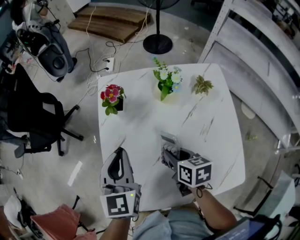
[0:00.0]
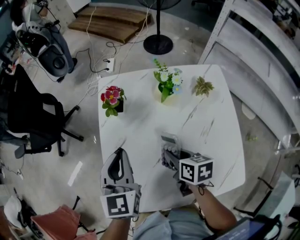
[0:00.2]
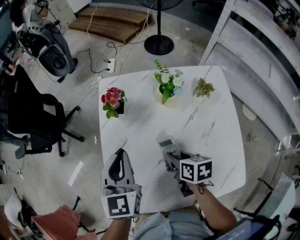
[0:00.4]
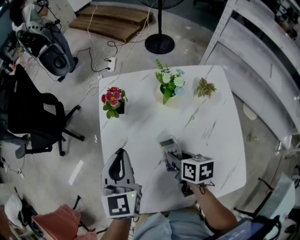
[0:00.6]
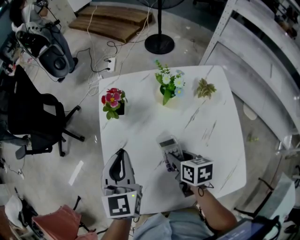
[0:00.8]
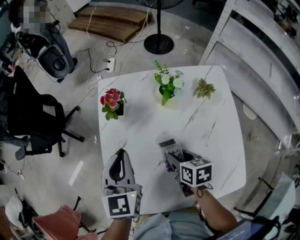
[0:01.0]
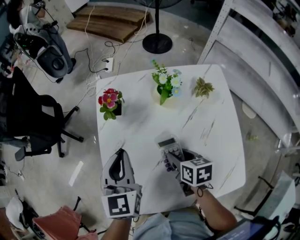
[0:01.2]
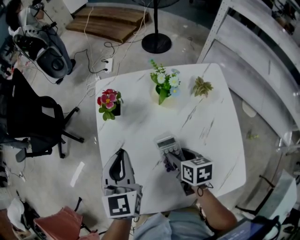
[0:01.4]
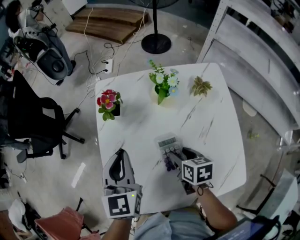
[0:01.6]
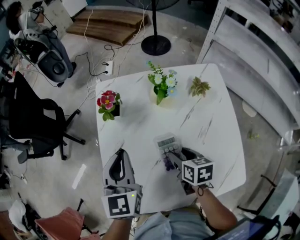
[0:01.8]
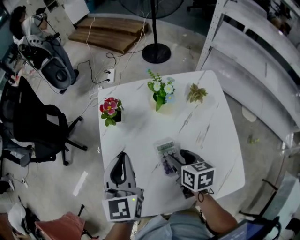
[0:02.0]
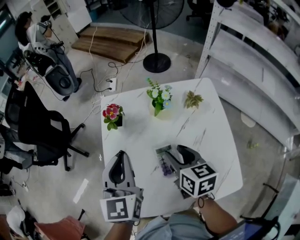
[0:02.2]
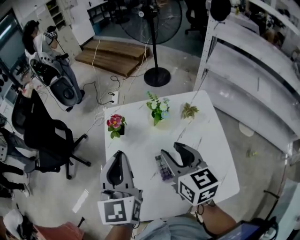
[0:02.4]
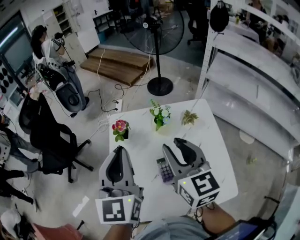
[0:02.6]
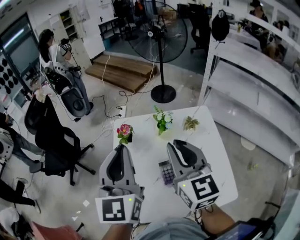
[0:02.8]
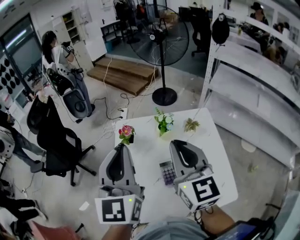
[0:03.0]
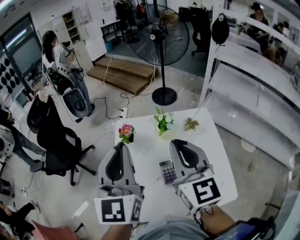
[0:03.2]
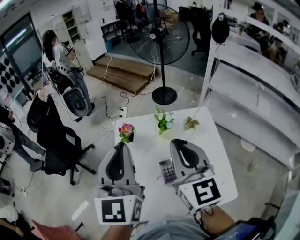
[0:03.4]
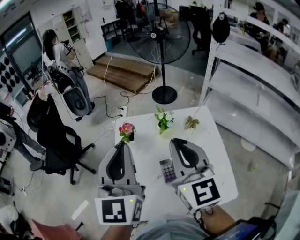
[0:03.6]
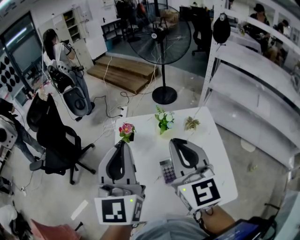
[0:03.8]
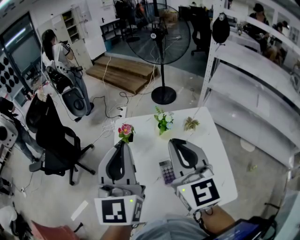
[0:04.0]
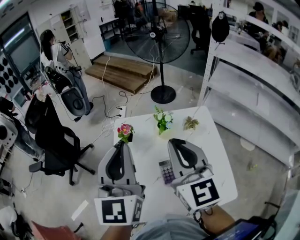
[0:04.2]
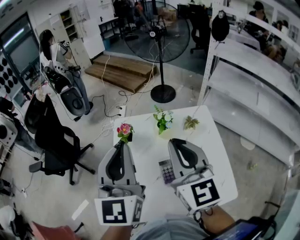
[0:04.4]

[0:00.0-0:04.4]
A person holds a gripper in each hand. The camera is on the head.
0:00.0 to 0:01.4: The right gripper opens.
0:01.4 to 0:03.0: The two grippers go approximately 30 cm upward. The left gripper swivels about 30 degrees. The right gripper angles its fingers upward, by roughly 50 degrees, and closes its fingers.
0:03.0 to 0:04.4: There are only small adjustments of the grippers.

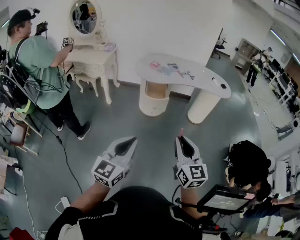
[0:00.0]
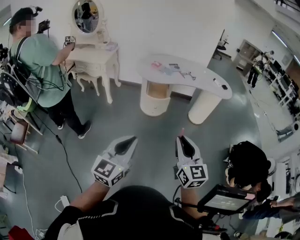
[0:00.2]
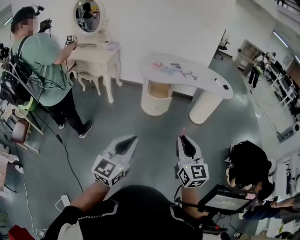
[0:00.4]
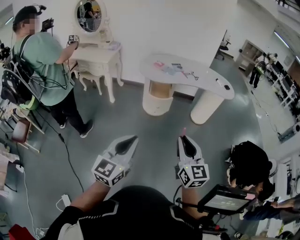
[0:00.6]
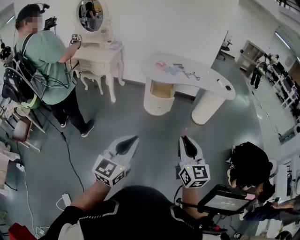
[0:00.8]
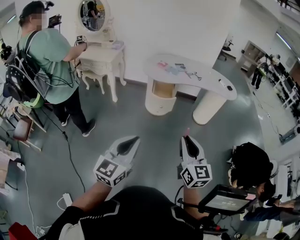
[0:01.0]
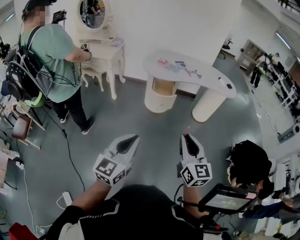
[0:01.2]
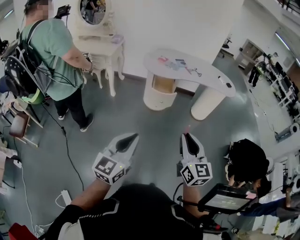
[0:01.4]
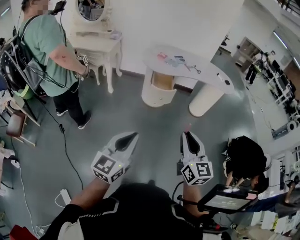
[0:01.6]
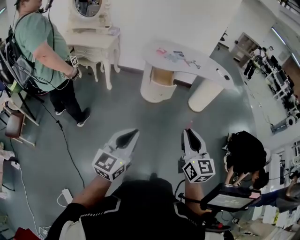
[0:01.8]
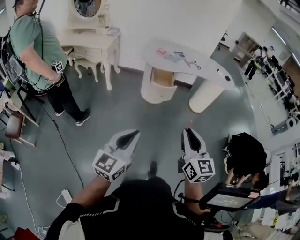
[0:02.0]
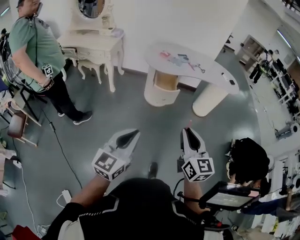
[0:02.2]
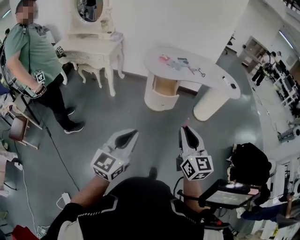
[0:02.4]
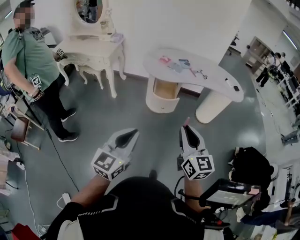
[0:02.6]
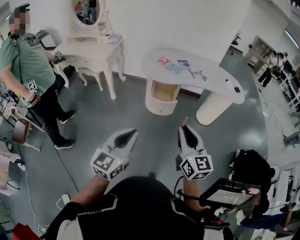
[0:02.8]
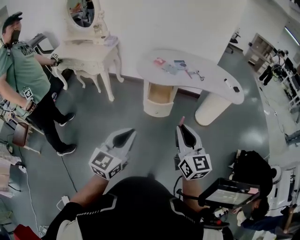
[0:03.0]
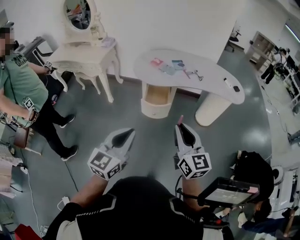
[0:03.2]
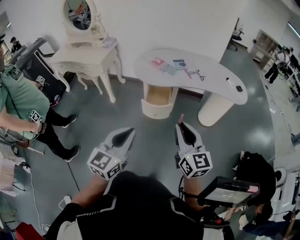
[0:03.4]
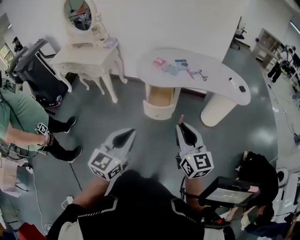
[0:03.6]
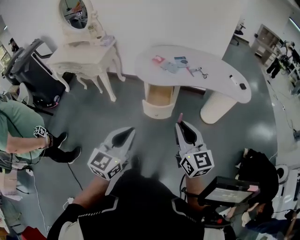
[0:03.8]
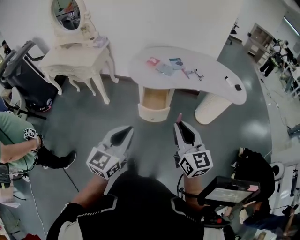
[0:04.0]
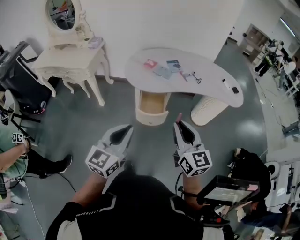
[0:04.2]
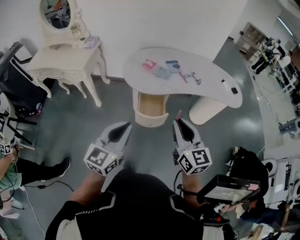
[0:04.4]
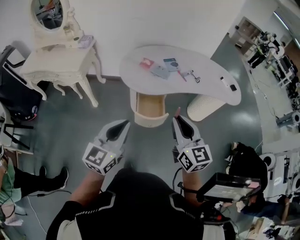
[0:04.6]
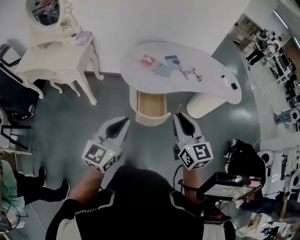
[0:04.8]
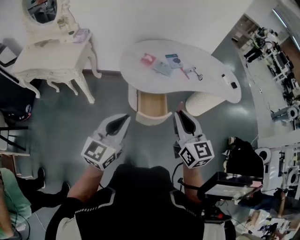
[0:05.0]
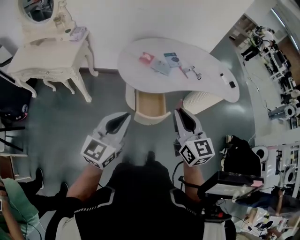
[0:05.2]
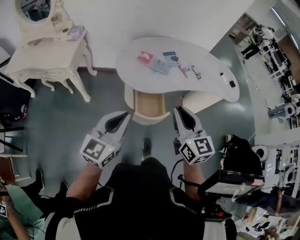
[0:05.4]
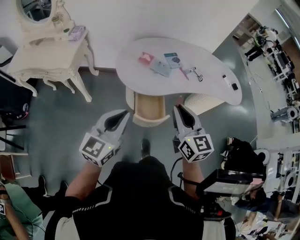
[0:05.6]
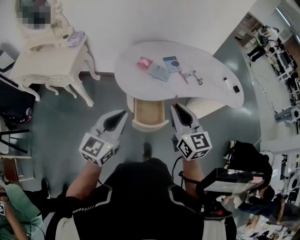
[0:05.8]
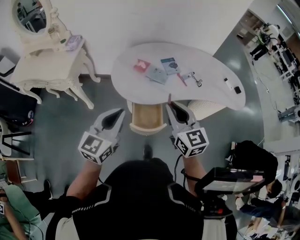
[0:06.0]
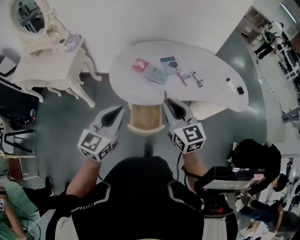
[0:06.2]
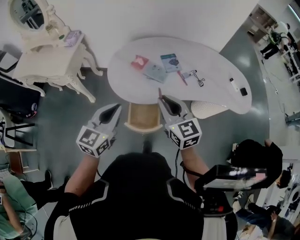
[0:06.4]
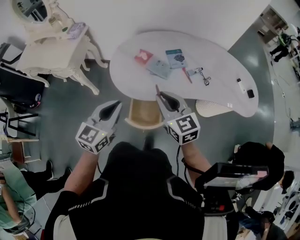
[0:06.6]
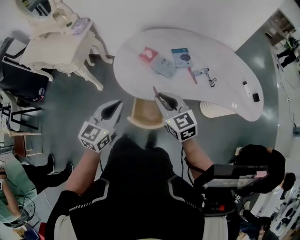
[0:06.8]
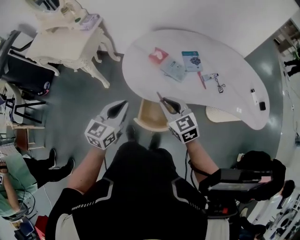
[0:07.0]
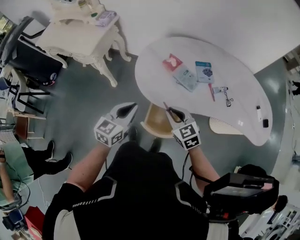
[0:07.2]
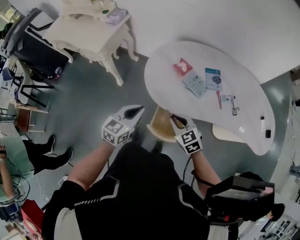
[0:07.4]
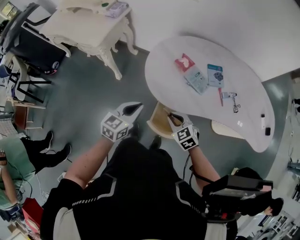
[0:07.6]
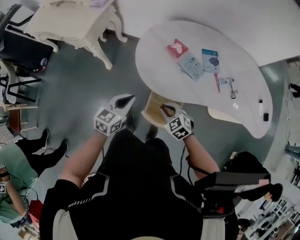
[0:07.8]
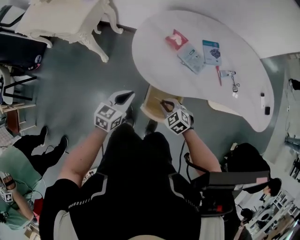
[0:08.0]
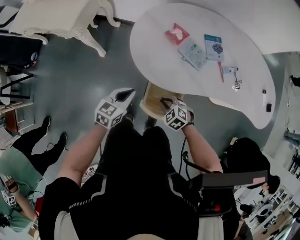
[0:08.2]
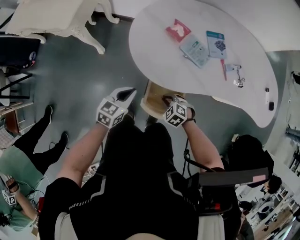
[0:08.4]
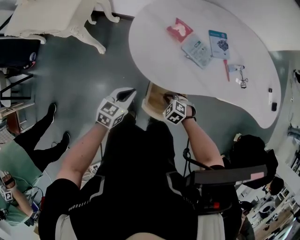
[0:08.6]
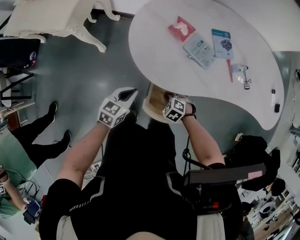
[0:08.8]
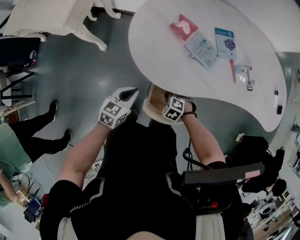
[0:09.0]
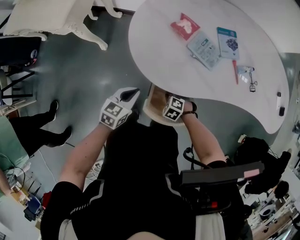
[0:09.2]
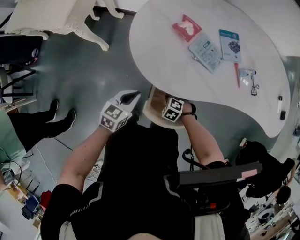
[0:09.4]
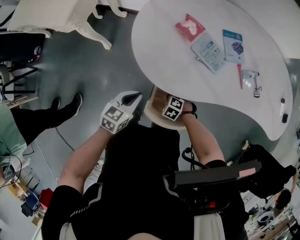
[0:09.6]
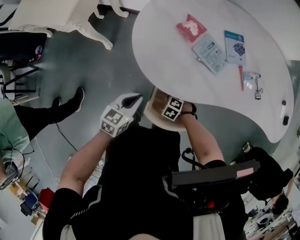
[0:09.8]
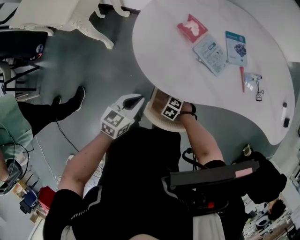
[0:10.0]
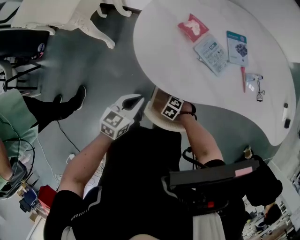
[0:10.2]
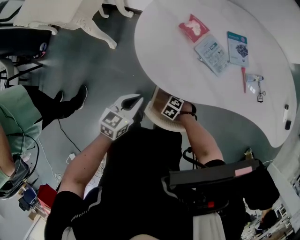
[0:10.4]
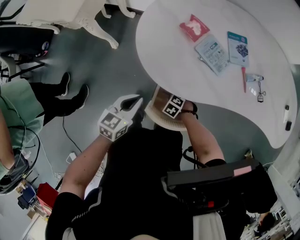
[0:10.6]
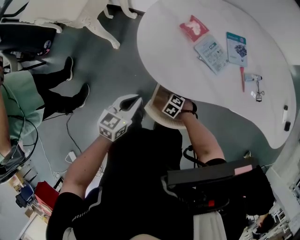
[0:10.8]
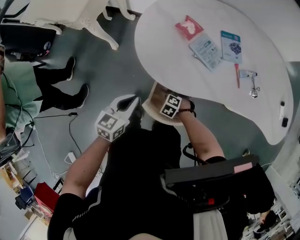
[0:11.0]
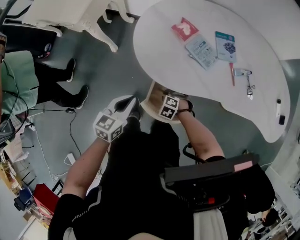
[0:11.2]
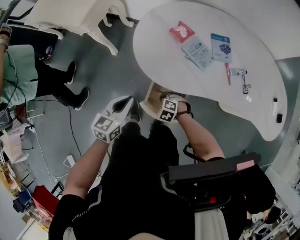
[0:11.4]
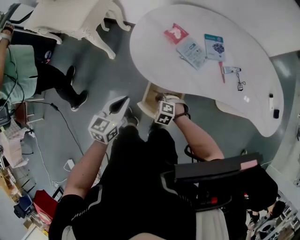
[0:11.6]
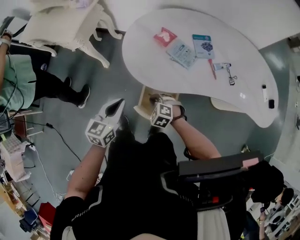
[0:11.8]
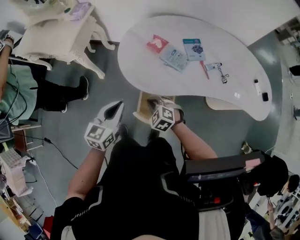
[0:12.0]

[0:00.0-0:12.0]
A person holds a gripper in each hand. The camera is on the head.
0:00.0 to 0:01.6: Both grippers travel together to the left, roughly 5 cm.
0:01.6 to 0:03.0: The right gripper goes approximately 20 cm forward. The left gripper travels forward and to the right by some 20 cm.
0:03.0 to 0:04.4: Both grippers travel together forward, about 20 cm.
0:04.4 to 0:06.0: Both grippers travel together forward, roughly 20 cm.
0:06.0 to 0:07.6: The right gripper shifts roughly 25 cm downward, and points its fingers roughly 30 degrees further downward; the left gripper moves downward and forward, about 20 cm, and rotates approximately 20 degrees.
0:07.6 to 0:09.0: Both grippers move downward, approximately 20 cm. The right gripper tips its fingers downward by approximately 30 degrees.
0:09.0 to 0:10.4: The right gripper is displaced downward by roughly 5 cm.
0:10.4 to 0:12.0: The right gripper is displaced upward by some 25 cm, and tips its fingers upward by roughly 30 degrees. Meanwhile the left gripper heads upward, covering approximately 15 cm.

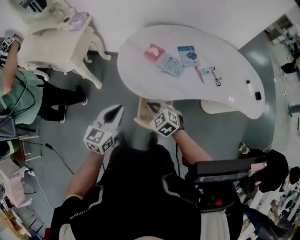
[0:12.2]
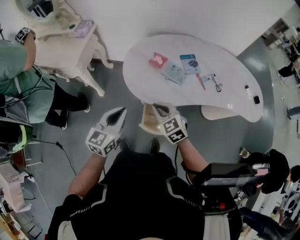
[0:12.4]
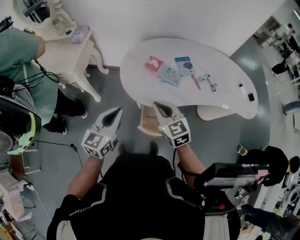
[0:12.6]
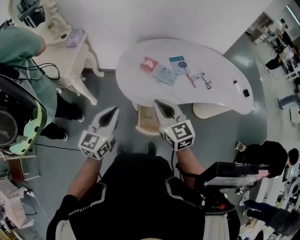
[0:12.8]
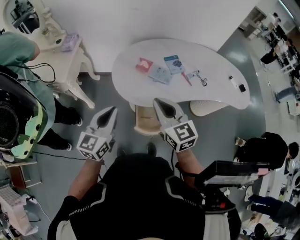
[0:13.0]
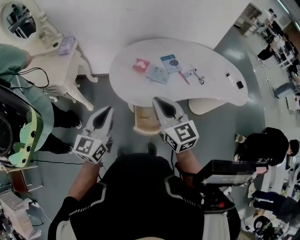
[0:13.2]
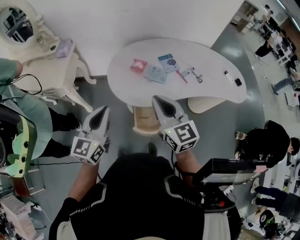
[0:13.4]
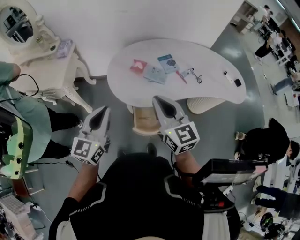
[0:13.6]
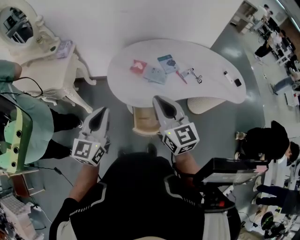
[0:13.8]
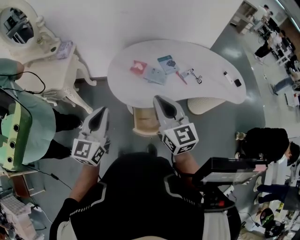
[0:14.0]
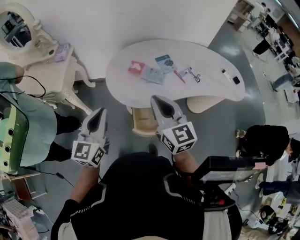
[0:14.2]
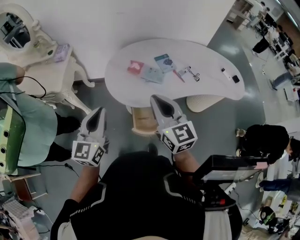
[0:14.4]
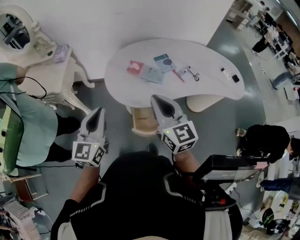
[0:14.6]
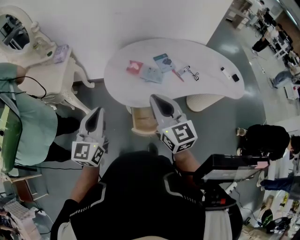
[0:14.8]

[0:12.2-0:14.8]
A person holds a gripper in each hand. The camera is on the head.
0:12.2 to 0:13.4: The right gripper is displaced upward by about 25 cm, and angles its fingers upward, by about 40 degrees. The left gripper goes roughly 15 cm upward.
0:13.4 to 0:14.8: The grippers stay close to where they were, moving slightly.

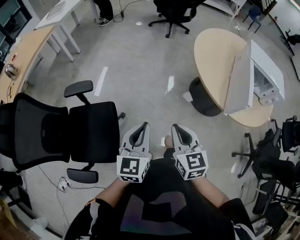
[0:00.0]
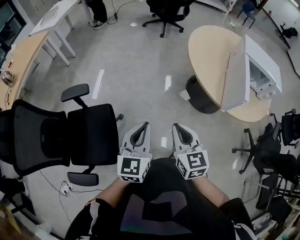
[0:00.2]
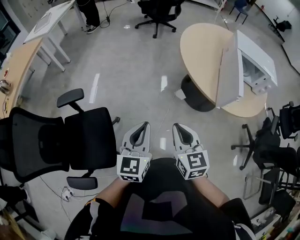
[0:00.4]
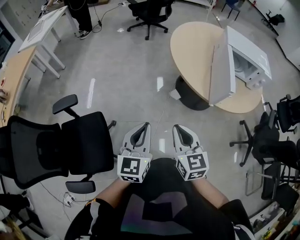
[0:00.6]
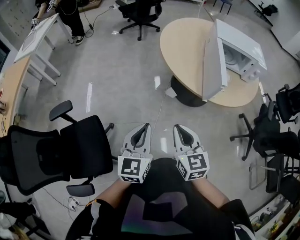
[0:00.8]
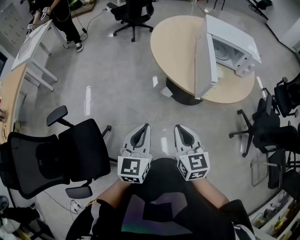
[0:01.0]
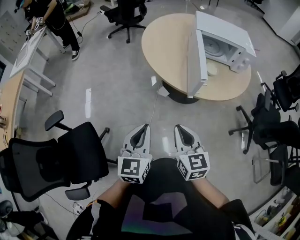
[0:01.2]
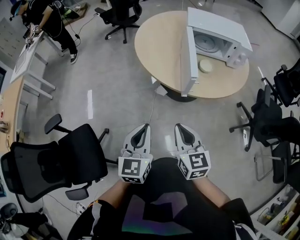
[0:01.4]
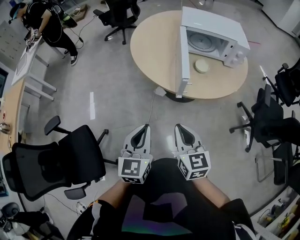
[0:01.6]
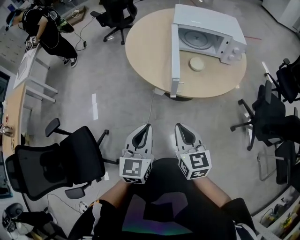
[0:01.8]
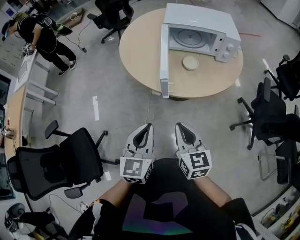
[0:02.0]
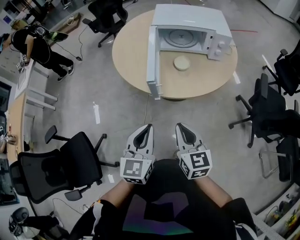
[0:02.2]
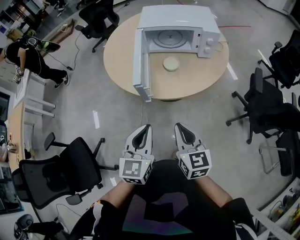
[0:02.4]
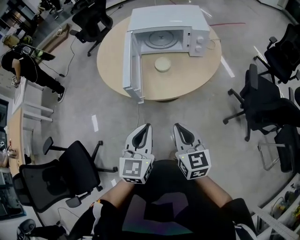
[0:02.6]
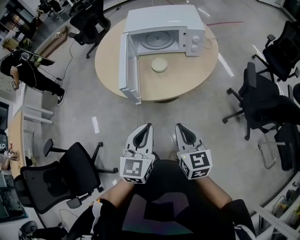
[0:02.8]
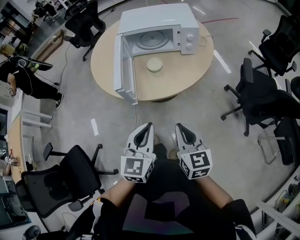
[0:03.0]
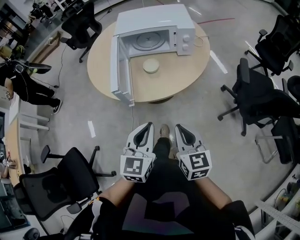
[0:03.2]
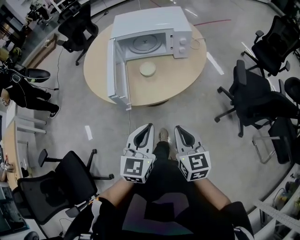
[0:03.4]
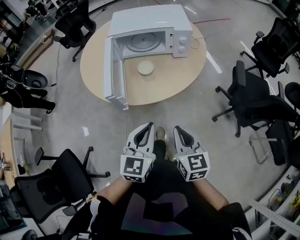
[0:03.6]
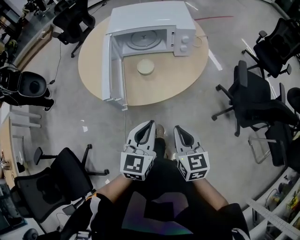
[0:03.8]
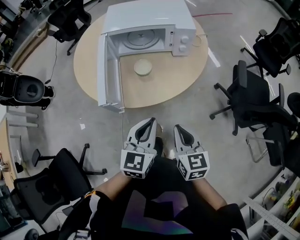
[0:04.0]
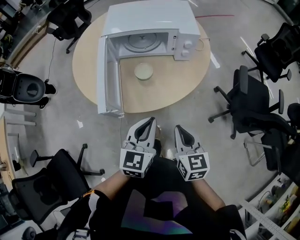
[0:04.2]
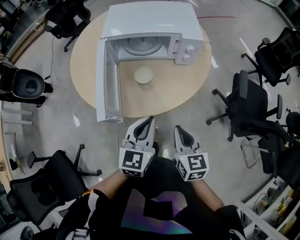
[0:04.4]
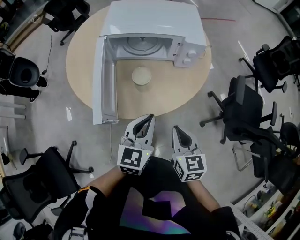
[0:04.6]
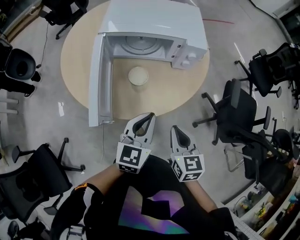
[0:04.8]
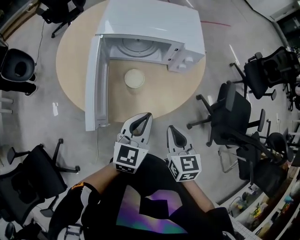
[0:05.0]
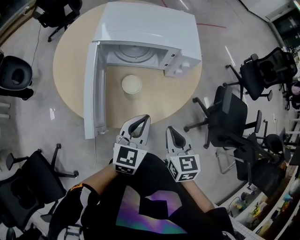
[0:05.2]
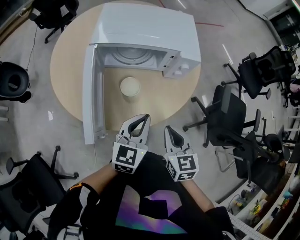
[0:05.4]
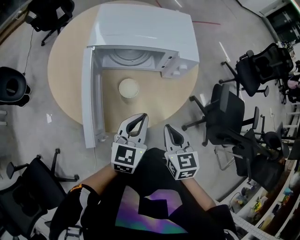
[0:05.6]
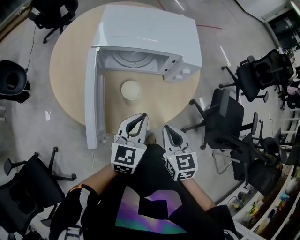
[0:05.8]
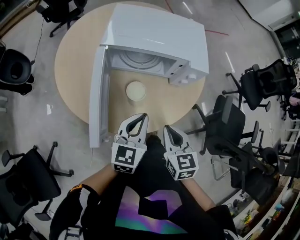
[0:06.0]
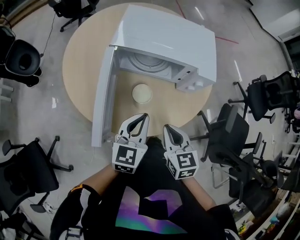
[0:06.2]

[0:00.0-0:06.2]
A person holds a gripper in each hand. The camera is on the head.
0:00.0 to 0:01.6: The two grippers go about 35 cm to the right. The right gripper swivels about 20 degrees.
0:01.6 to 0:03.2: Both grippers move to the right, some 30 cm.
0:03.2 to 0:04.6: Both grippers travel together forward, some 20 cm.
0:04.6 to 0:06.2: The left gripper heads forward, covering approximately 10 cm, while the right gripper goes roughly 15 cm forward and to the left.
